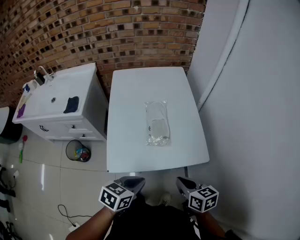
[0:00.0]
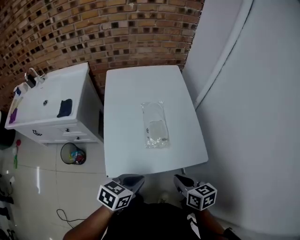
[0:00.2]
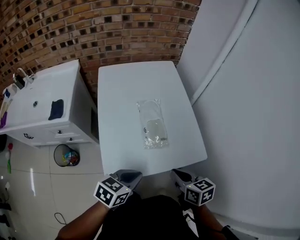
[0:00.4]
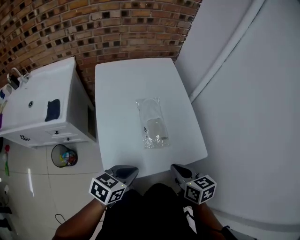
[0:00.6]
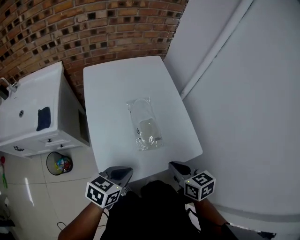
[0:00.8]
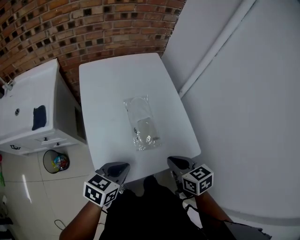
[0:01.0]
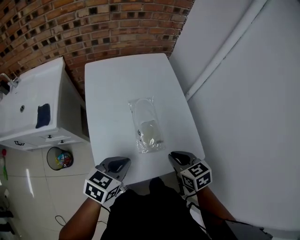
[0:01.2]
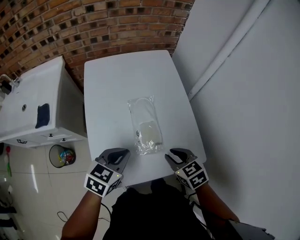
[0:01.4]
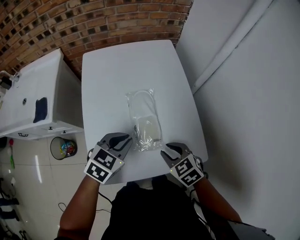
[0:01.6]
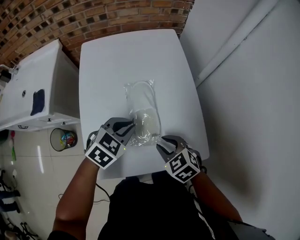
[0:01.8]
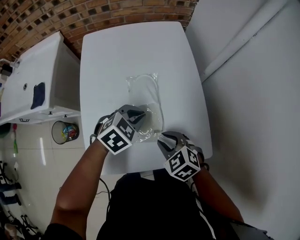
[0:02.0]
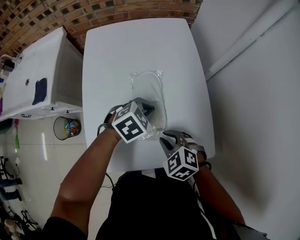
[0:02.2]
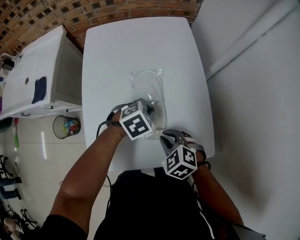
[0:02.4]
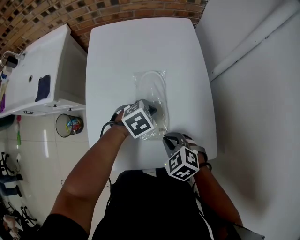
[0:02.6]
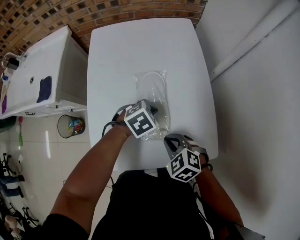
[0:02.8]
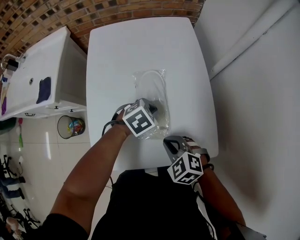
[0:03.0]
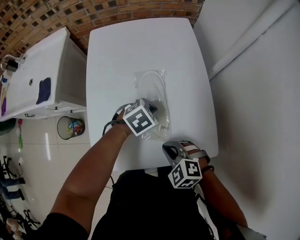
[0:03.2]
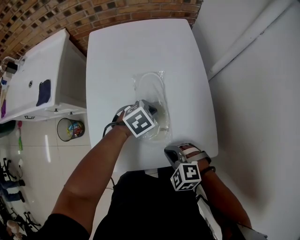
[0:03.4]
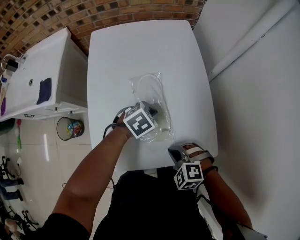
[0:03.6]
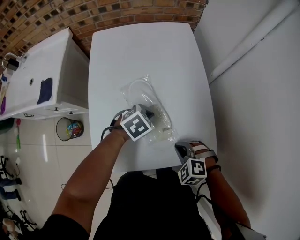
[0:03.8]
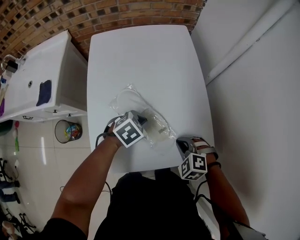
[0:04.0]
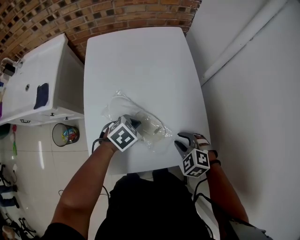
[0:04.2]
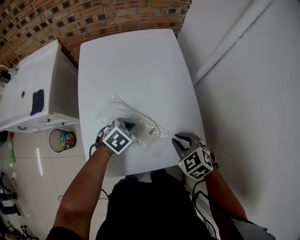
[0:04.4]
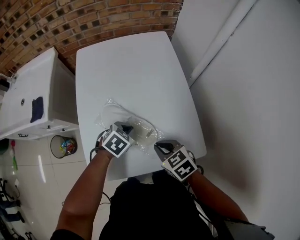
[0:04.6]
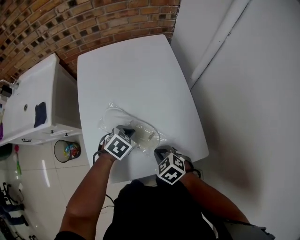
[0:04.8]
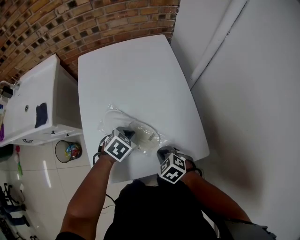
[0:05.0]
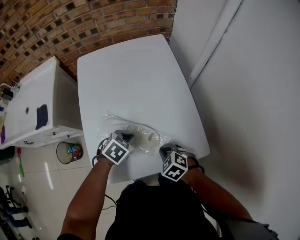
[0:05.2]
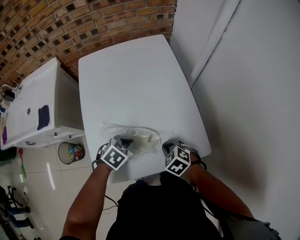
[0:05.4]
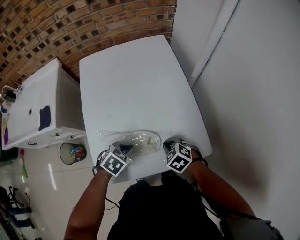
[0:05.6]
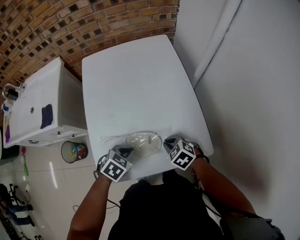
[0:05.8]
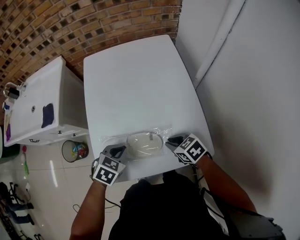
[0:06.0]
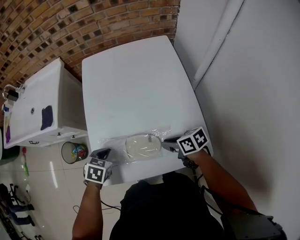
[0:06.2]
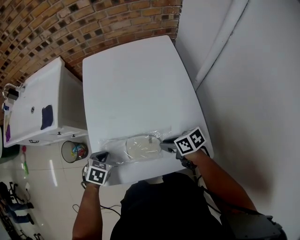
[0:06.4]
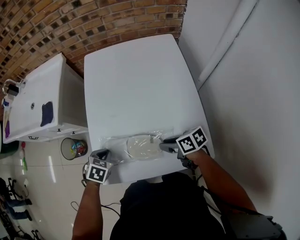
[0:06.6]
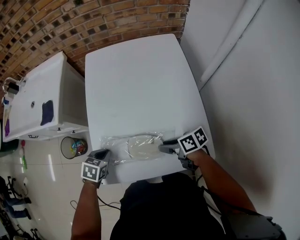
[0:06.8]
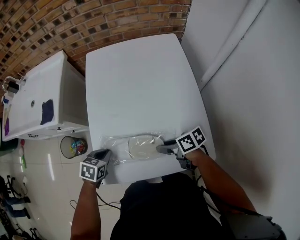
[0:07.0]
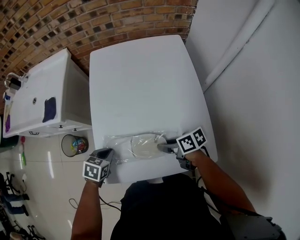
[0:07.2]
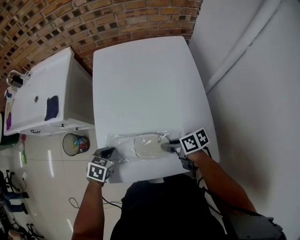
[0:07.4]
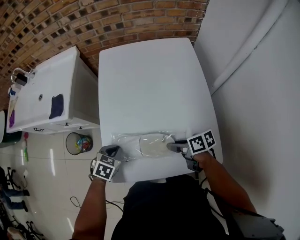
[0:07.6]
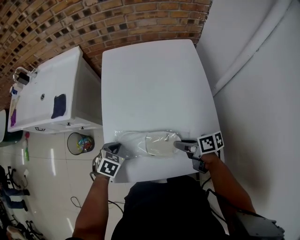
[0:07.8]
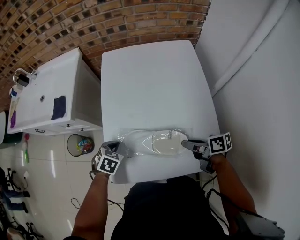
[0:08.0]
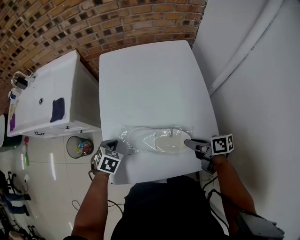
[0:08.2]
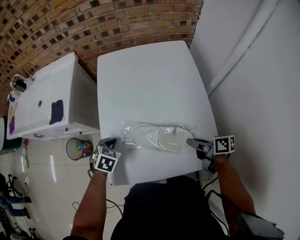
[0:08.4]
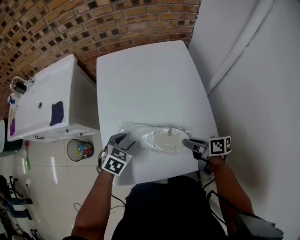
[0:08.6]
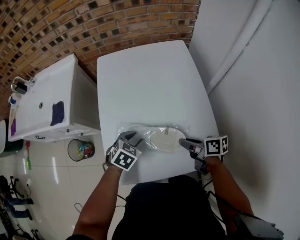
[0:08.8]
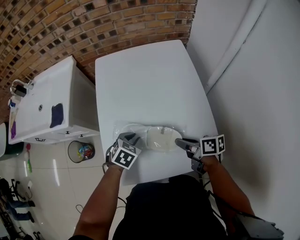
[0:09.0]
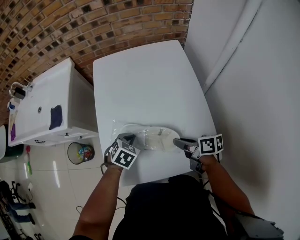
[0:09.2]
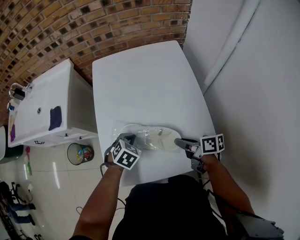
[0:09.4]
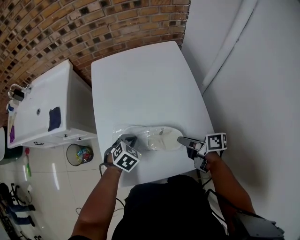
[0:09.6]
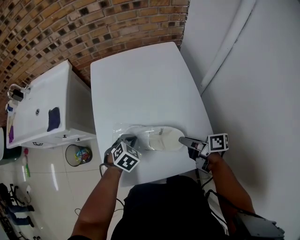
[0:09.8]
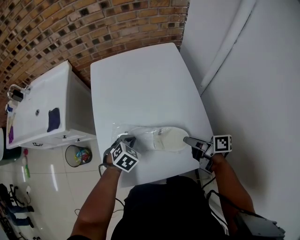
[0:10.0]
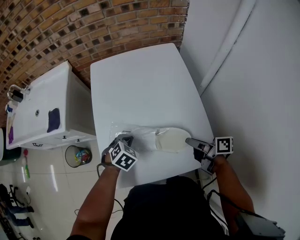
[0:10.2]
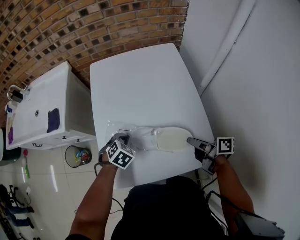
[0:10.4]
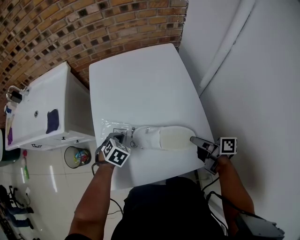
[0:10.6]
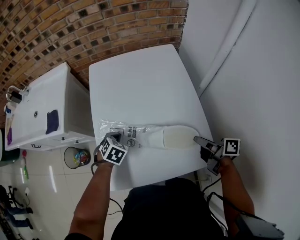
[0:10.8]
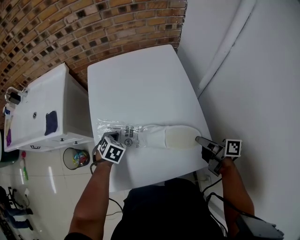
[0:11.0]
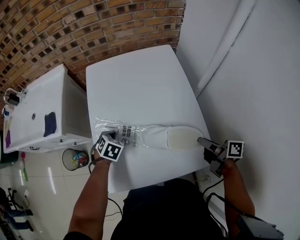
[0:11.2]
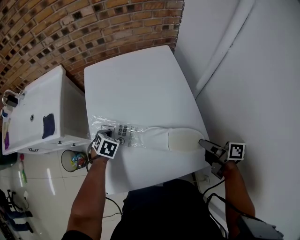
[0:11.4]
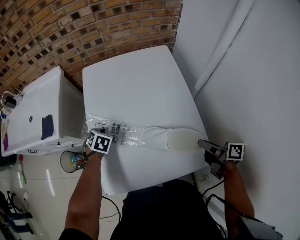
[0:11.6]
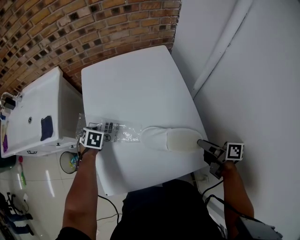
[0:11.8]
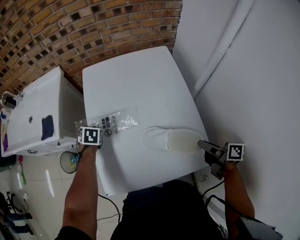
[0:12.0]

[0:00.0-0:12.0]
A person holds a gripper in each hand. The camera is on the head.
0.0 to 1.6 s: The left gripper travels forward by roughly 25 cm, and changes its angle by some 30 degrees, while the right gripper travels forward, downward and to the left by roughly 20 cm, turns by roughly 40 degrees, and opens its fingers.
1.6 to 3.0 s: The left gripper goes about 15 cm downward, to the right and forward, and rotates some 20 degrees. Meanwhile the right gripper shifts by roughly 5 cm, swivels roughly 20 degrees, and closes its fingers.
3.0 to 4.4 s: The right gripper heads to the right, covering about 5 cm, while the left gripper moves approximately 5 cm.
4.4 to 6.0 s: The left gripper heads backward and to the left, covering approximately 10 cm; the right gripper goes approximately 5 cm downward, and turns by approximately 30 degrees.
6.0 to 7.6 s: The left gripper shifts approximately 10 cm to the left; the right gripper shifts by about 5 cm, and turns by some 40 degrees.
7.6 to 9.0 s: The left gripper is displaced to the right by some 10 cm, and opens its fingers.
9.0 to 10.4 s: The left gripper closes up, while the right gripper heads to the right, covering some 10 cm.
10.4 to 12.0 s: The right gripper is displaced to the right by roughly 5 cm, while the left gripper shifts roughly 15 cm forward and to the left, and swivels about 30 degrees.

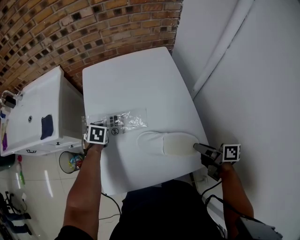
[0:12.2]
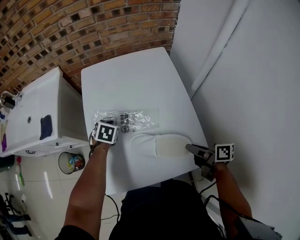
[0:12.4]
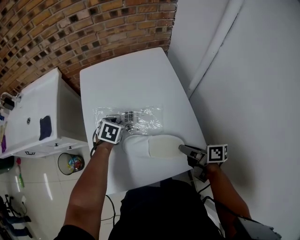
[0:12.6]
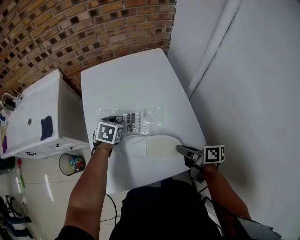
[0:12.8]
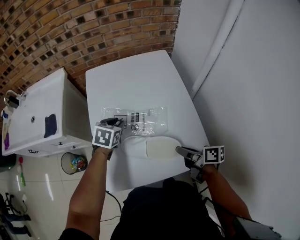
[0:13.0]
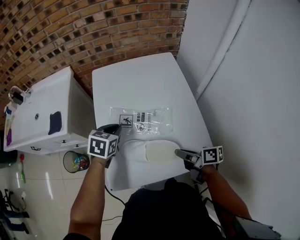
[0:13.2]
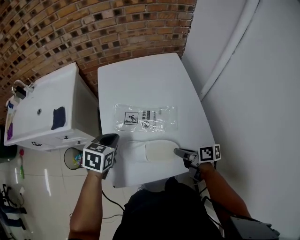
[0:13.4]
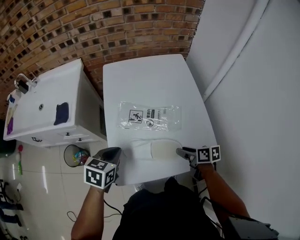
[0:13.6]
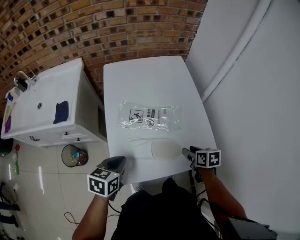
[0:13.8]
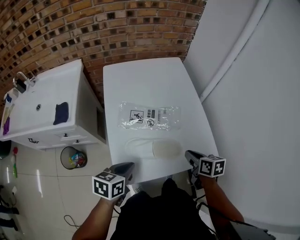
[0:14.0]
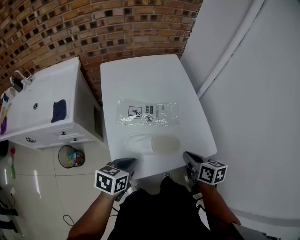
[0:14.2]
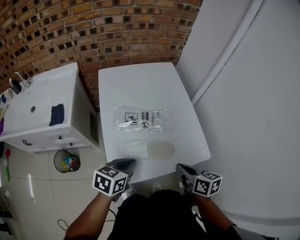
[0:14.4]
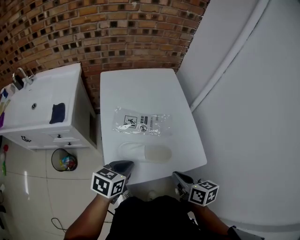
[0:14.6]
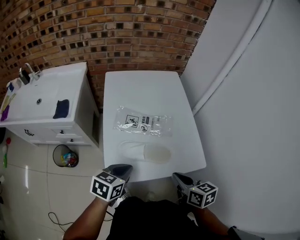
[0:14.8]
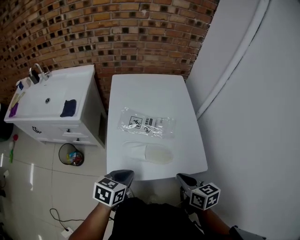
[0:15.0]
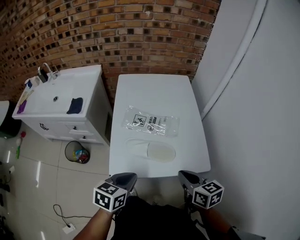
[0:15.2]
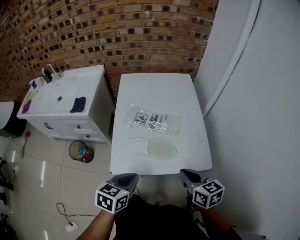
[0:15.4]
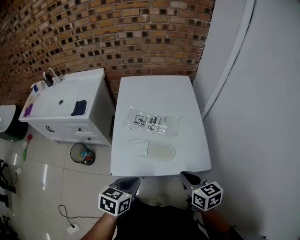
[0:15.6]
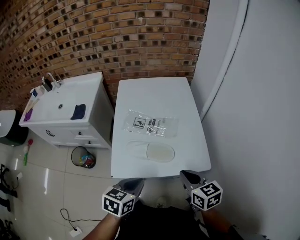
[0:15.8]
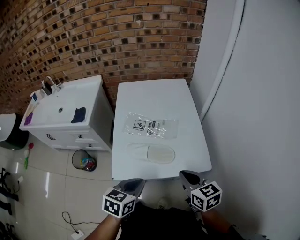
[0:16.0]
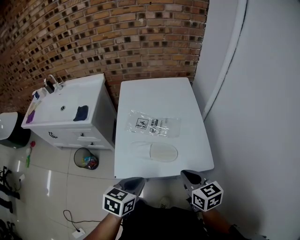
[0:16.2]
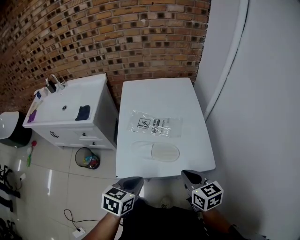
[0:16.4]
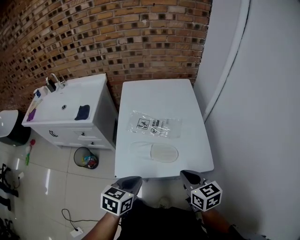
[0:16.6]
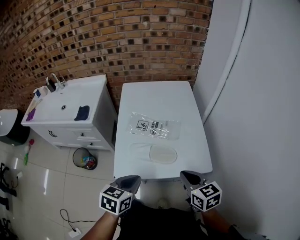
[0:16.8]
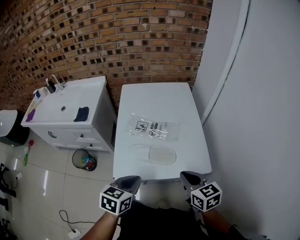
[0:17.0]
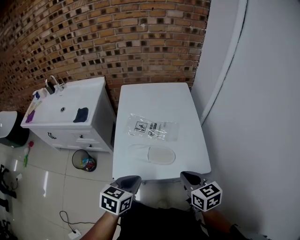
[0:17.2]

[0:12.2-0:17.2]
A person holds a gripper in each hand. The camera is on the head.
12.2 to 13.8 s: The left gripper changes place by about 25 cm, changes its angle by approximately 30 degrees, and opens, then closes again. The right gripper moves approximately 10 cm, changes its angle by roughly 40 degrees, and opens its fingers.
13.8 to 15.6 s: The right gripper is displaced upward and backward by roughly 20 cm, turns by roughly 30 degrees, and closes; the left gripper moves backward, to the right and upward, about 20 cm.
15.6 to 17.2 s: The grippers make only small movements.

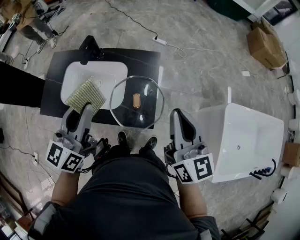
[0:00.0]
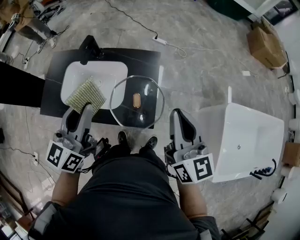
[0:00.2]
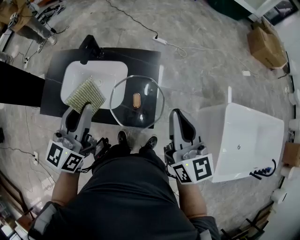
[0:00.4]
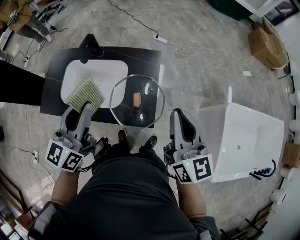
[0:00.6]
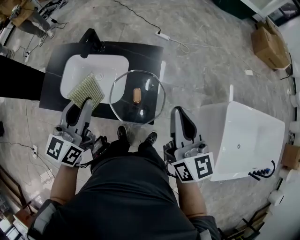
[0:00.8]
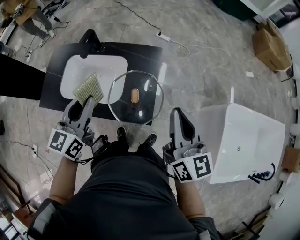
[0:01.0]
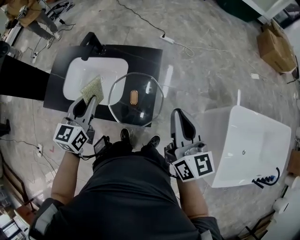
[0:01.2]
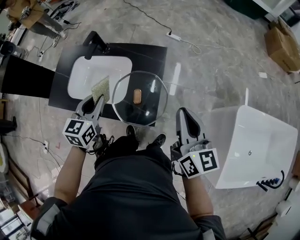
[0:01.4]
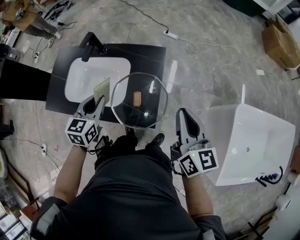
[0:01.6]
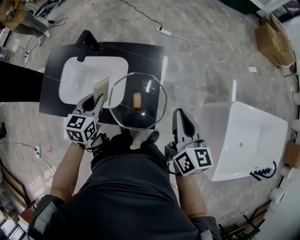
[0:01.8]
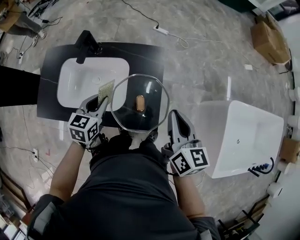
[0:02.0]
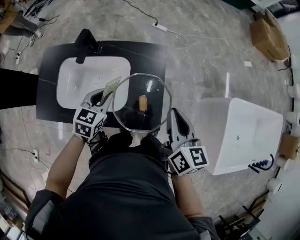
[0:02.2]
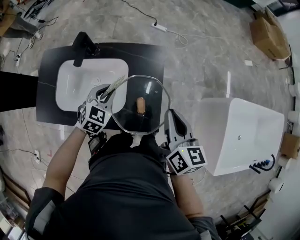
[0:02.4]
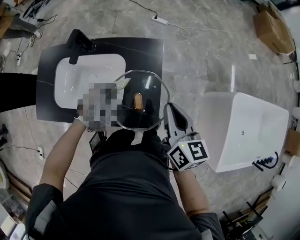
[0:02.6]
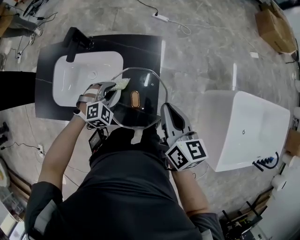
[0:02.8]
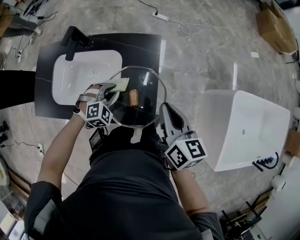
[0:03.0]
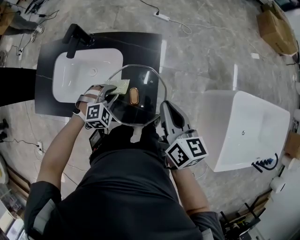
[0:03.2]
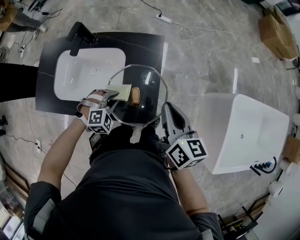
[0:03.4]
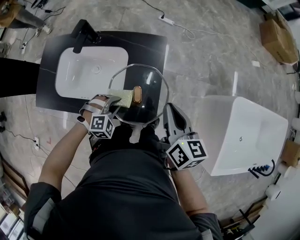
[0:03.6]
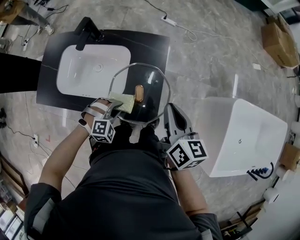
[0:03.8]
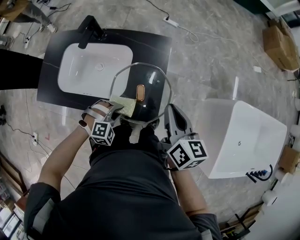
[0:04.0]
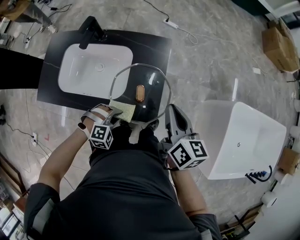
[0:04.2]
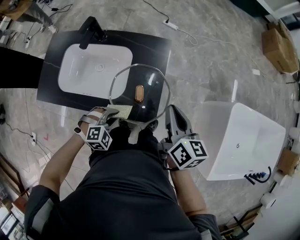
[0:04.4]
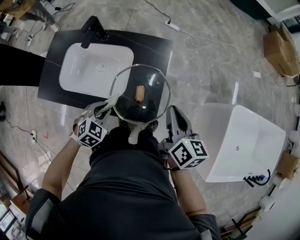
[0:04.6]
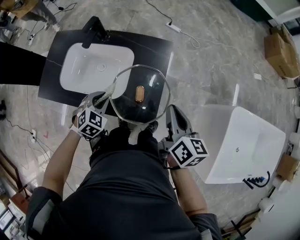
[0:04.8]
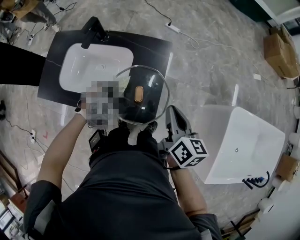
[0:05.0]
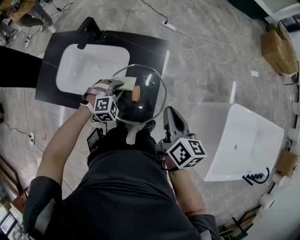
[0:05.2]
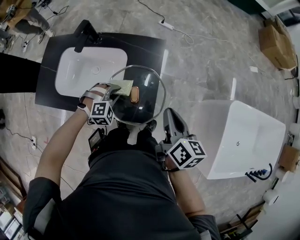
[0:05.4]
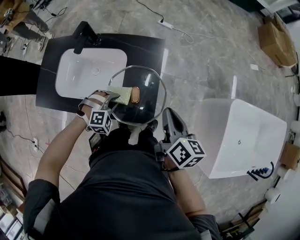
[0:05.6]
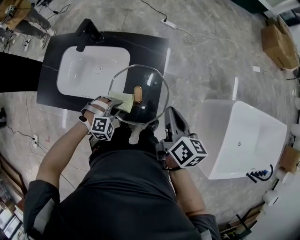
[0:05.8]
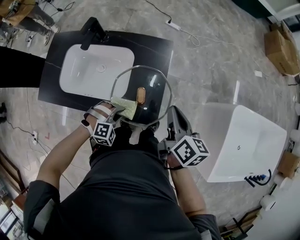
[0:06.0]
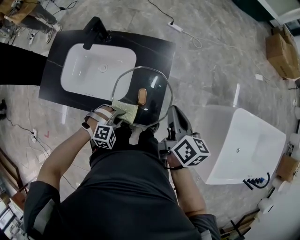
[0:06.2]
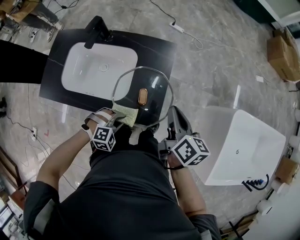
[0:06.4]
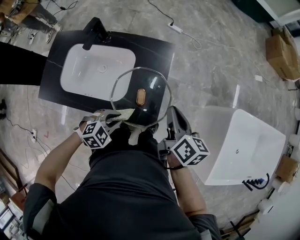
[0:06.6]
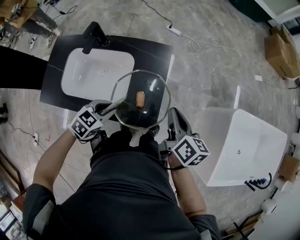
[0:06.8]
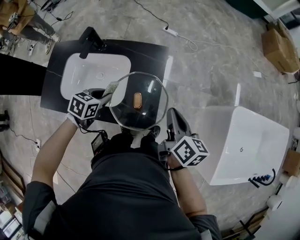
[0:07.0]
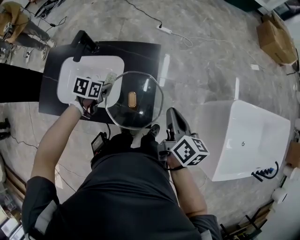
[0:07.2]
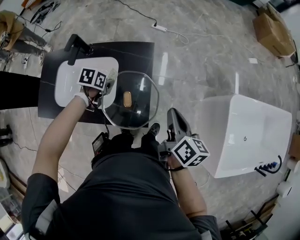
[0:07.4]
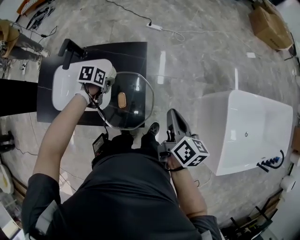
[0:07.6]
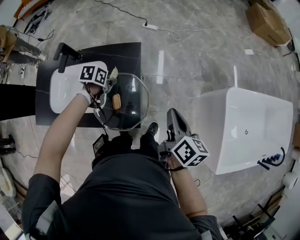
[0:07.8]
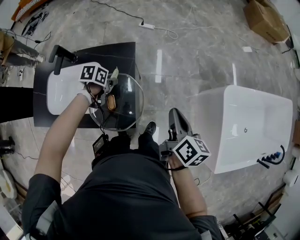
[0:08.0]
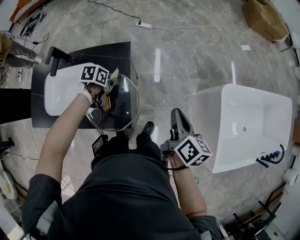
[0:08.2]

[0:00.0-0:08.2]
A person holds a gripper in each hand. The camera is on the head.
0.0 to 1.6 s: The left gripper shifts approximately 20 cm downward, and points its fingers some 30 degrees further downward. Meanwhile the right gripper goes about 10 cm downward and to the right.
1.6 to 3.2 s: The left gripper moves downward, some 15 cm, and rotates around the line of its fingers by about 60 degrees, clockwise from behind; the right gripper moves downward and to the left, approximately 10 cm.
3.2 to 5.0 s: The left gripper travels backward and back again, approximately 15 cm each way.
5.0 to 6.6 s: The left gripper is displaced backward by roughly 10 cm, and swivels approximately 30 degrees.
6.6 to 8.2 s: The right gripper travels to the right by roughly 20 cm, while the left gripper travels forward by approximately 25 cm, and rolls counterclockwise, seen from behind, by roughly 60 degrees.
